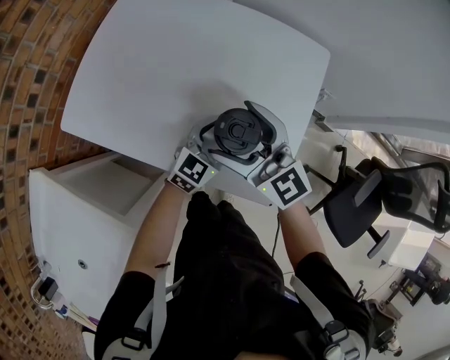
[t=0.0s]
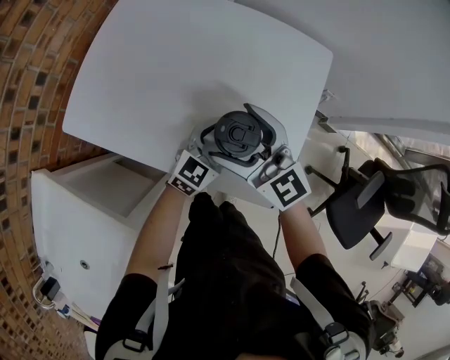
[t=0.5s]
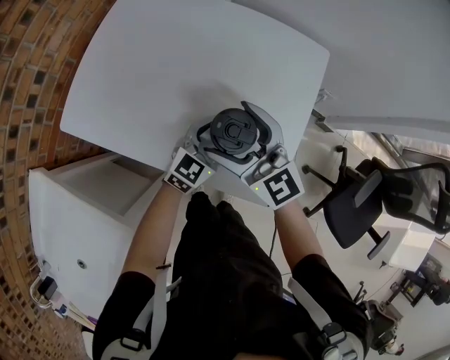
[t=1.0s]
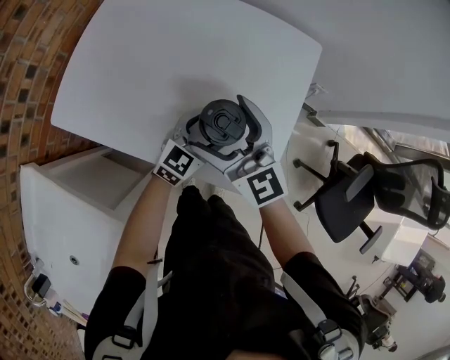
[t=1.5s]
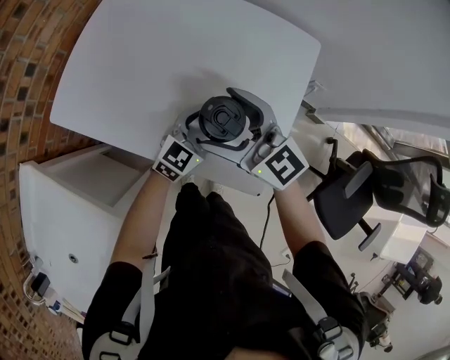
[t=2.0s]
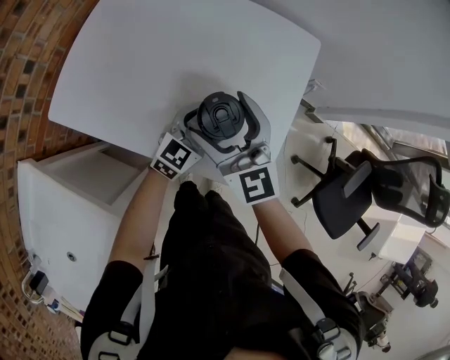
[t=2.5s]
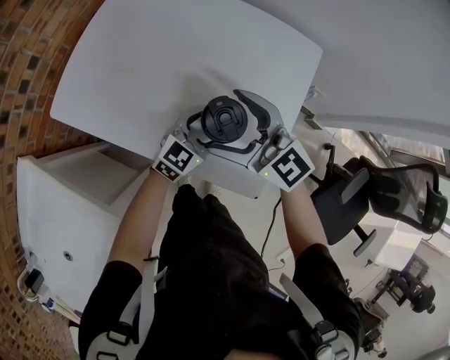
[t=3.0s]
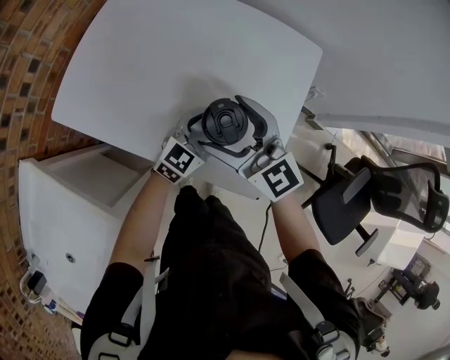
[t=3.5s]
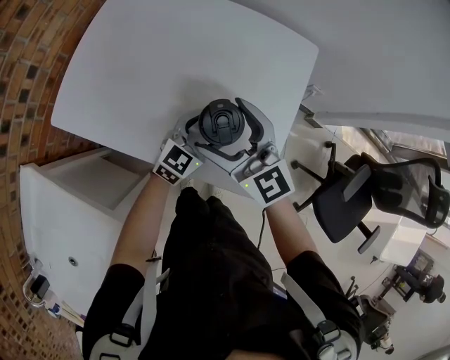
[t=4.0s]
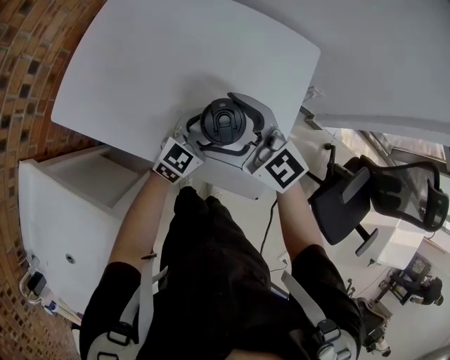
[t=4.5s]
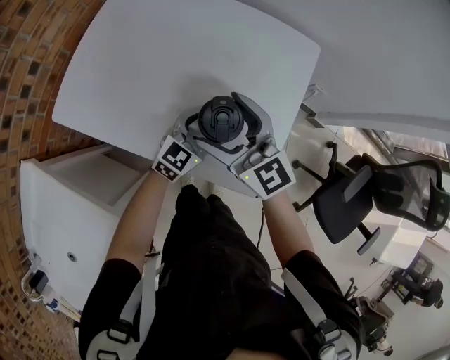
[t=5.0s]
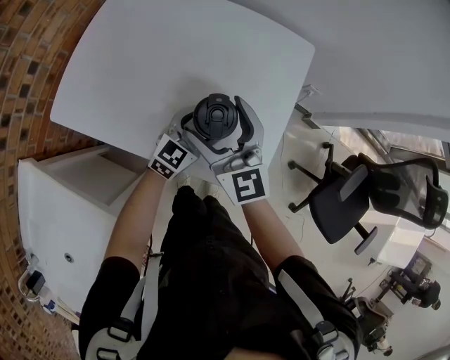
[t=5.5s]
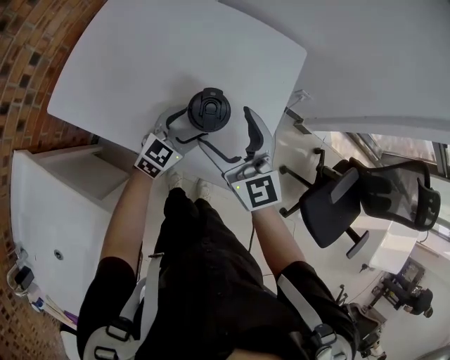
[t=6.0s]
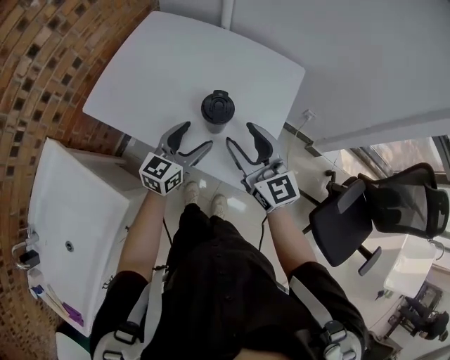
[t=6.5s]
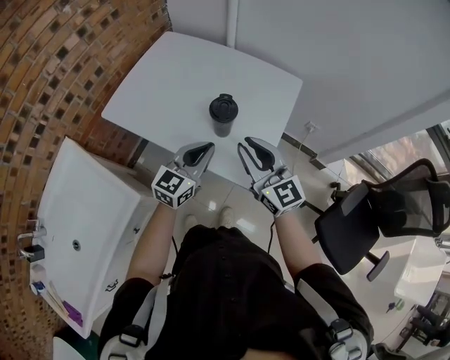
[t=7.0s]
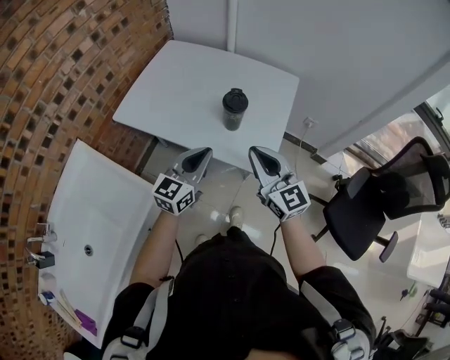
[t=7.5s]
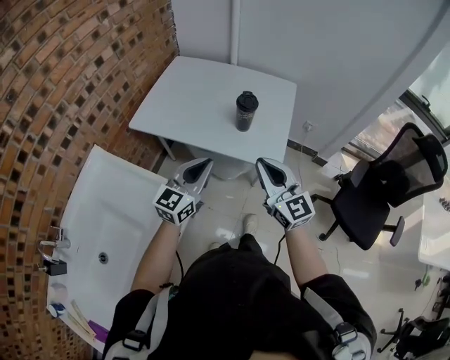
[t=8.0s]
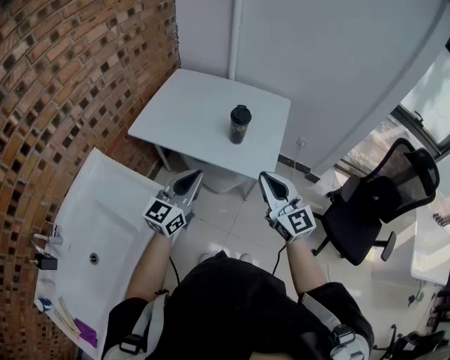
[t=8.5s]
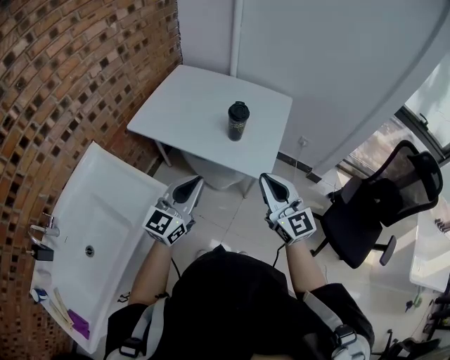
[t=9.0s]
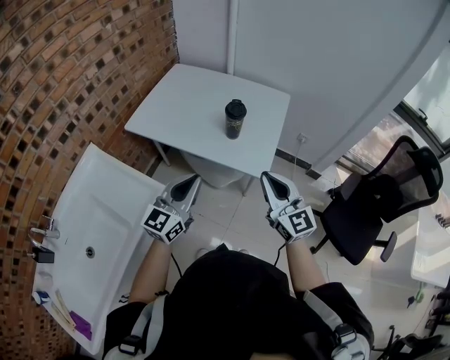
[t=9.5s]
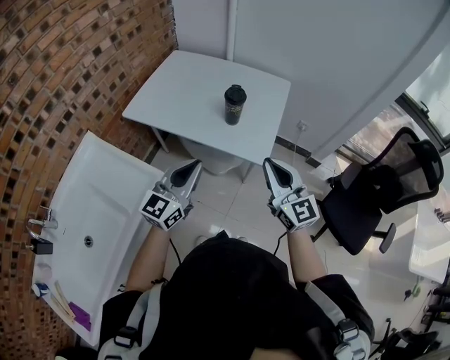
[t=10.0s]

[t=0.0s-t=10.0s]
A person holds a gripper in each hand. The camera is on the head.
t=0.0s to t=2.0s: The grippers move only a little.
t=4.0s to t=6.0s: There are only small adjustments of the grippers.
t=6.0s to t=8.0s: The right gripper moves backward and upward, approximately 30 cm, and closes. The left gripper travels backward, upward and to the left by about 40 cm, swivels about 30 degrees, and closes up.
t=8.0s to t=10.0s: The left gripper shifts by about 5 cm; the right gripper shifts roughly 10 cm to the right.

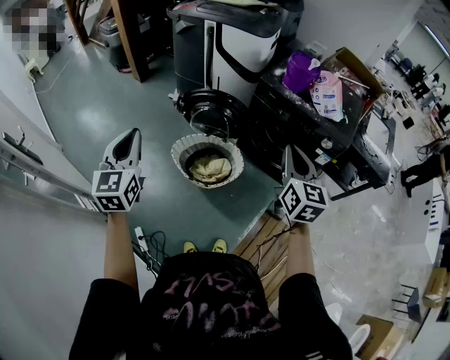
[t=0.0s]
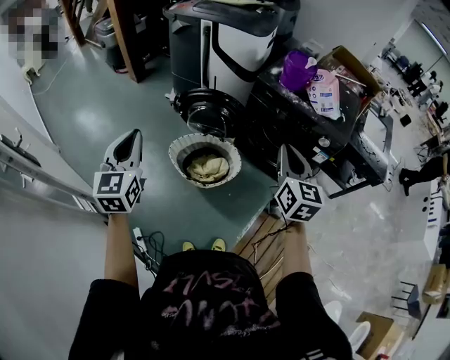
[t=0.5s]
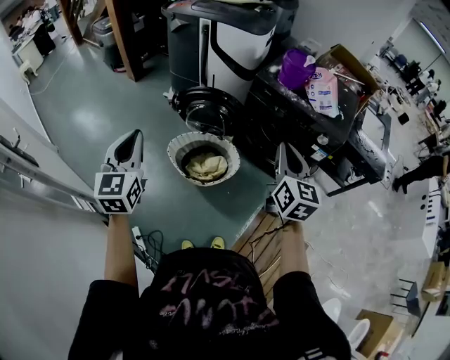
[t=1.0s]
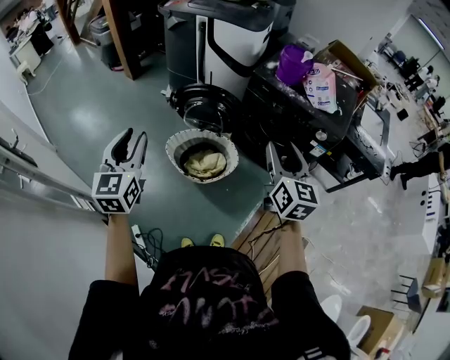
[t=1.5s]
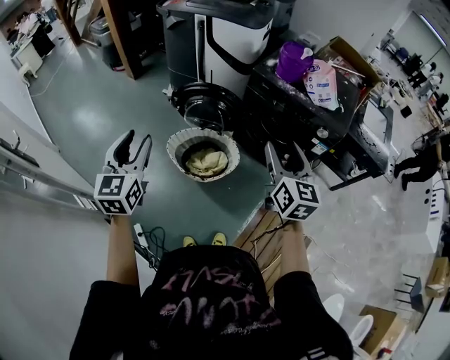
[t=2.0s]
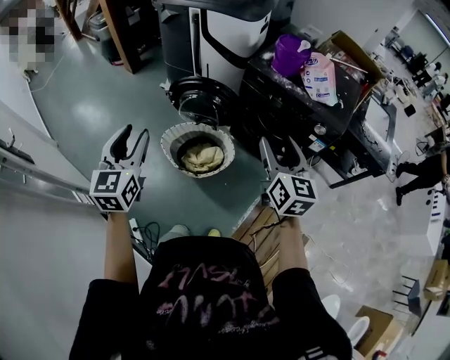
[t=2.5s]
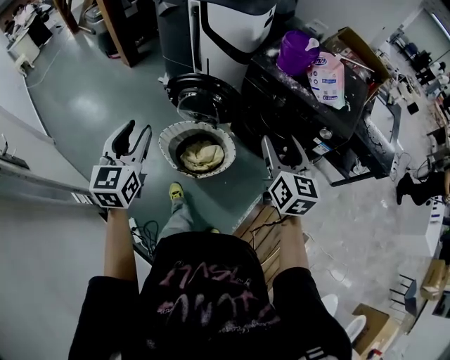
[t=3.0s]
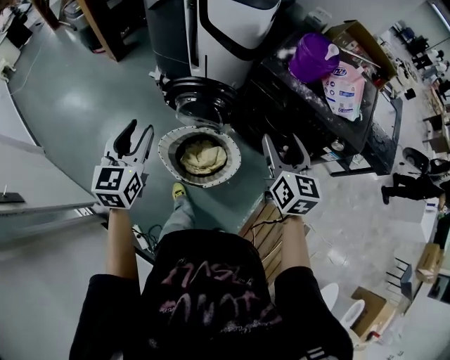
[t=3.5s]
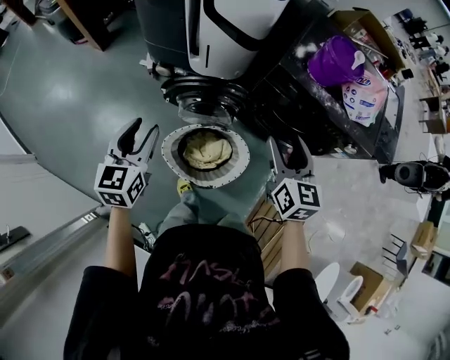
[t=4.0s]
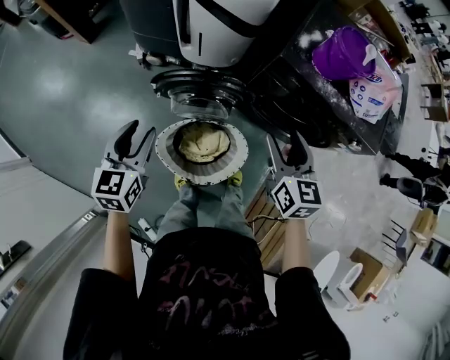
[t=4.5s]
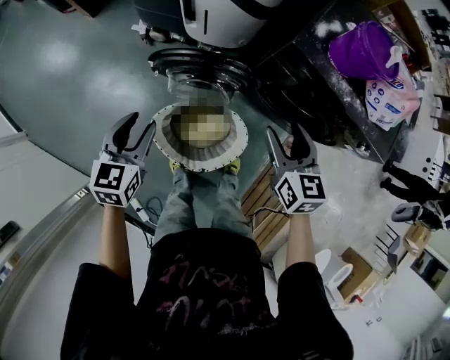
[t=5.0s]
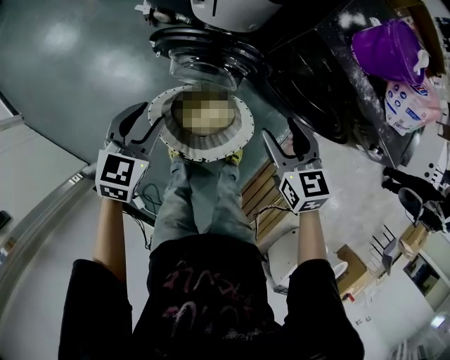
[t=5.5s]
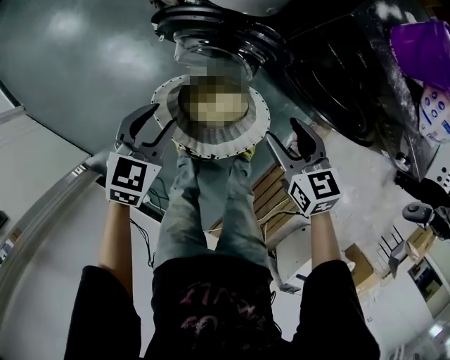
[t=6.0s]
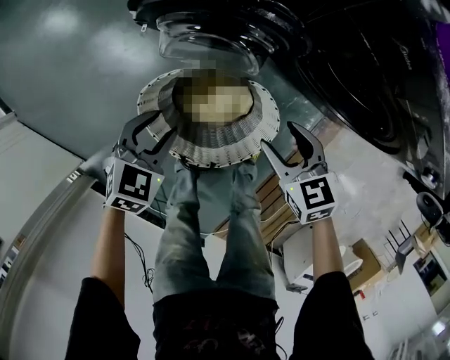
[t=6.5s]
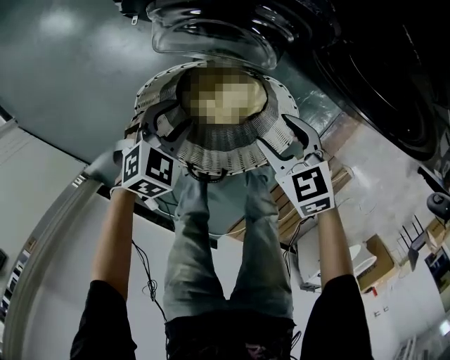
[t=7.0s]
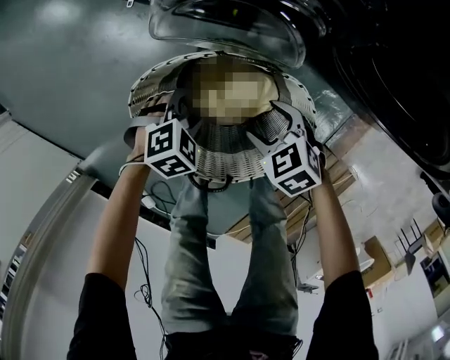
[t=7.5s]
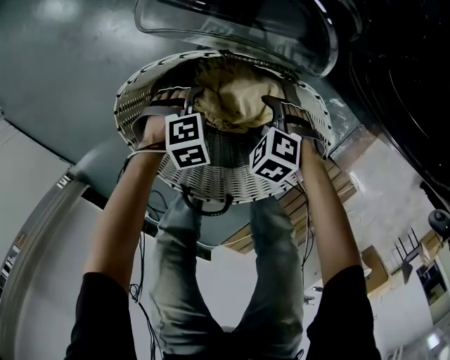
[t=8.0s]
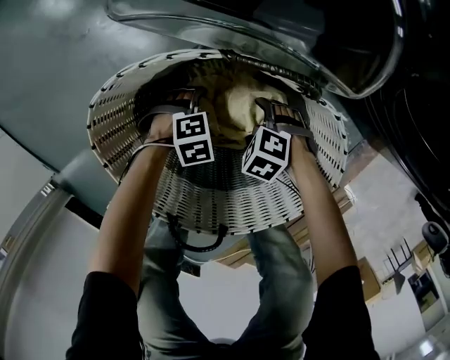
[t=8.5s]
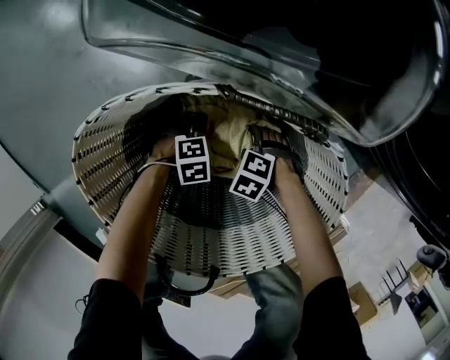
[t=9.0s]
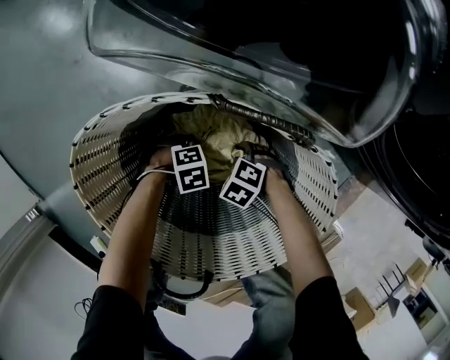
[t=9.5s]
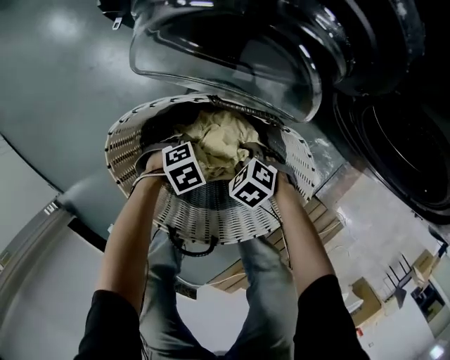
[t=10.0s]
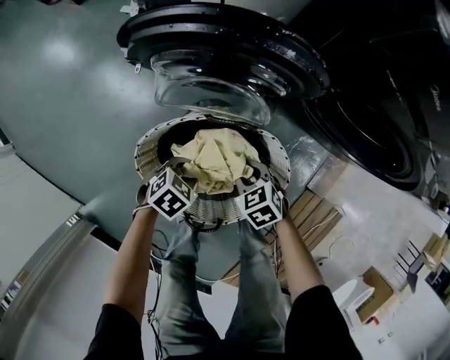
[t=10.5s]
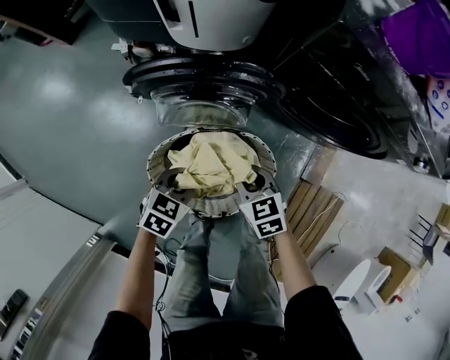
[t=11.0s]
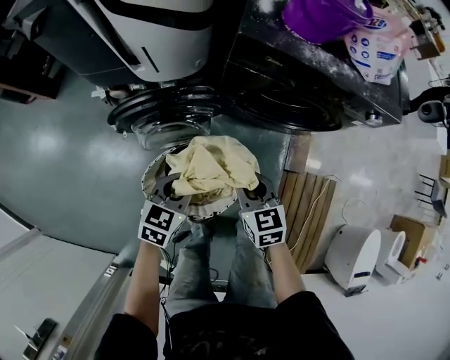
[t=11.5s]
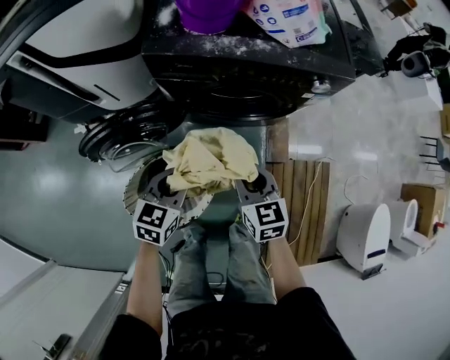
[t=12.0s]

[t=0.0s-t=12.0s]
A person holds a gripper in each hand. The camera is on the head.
t=0.0s to t=2.0s: The left gripper opens its fingers, while the right gripper opens its fingers.
t=2.0s to t=4.0s: The right gripper travels forward by approximately 25 cm; the left gripper goes about 35 cm forward and downward, and rotates roughly 20 degrees.
t=4.0s to t=6.0s: The grippers both shift downward by about 25 cm. The left gripper swivels approximately 20 degrees. Meanwhile the right gripper turns by roughly 40 degrees.
t=6.0s to t=8.0s: Both grippers move downward, roughly 50 cm. The right gripper tilts its fingers roughly 40 degrees downward; the left gripper tips its fingers downward by some 40 degrees.
t=8.0s to t=10.0s: The right gripper moves some 20 cm downward and comes back, and closes its fingers, while the left gripper travels downward and back again, about 20 cm each way, and closes its fingers.
t=10.0s to t=12.0s: The two grippers go roughly 50 cm upward. The left gripper points its fingers some 40 degrees further upward; the right gripper angles its fingers upward, by about 50 degrees.

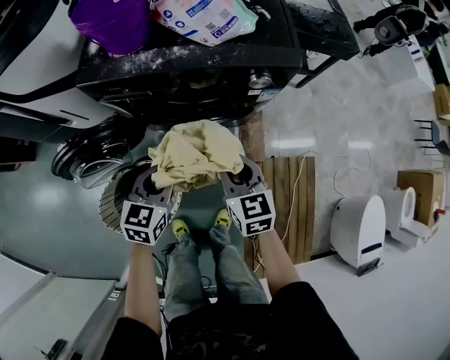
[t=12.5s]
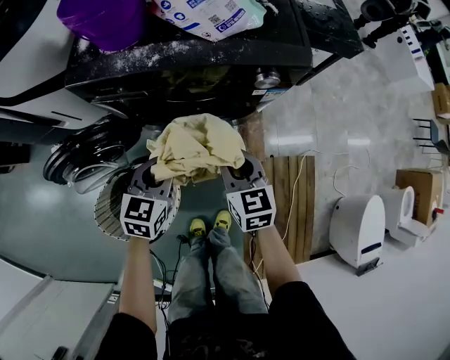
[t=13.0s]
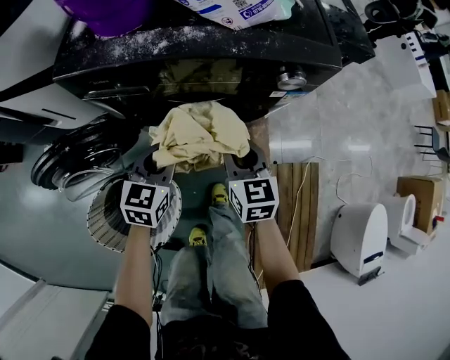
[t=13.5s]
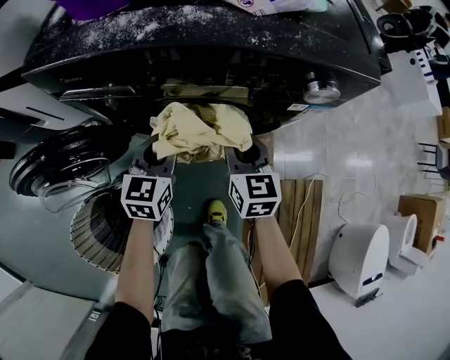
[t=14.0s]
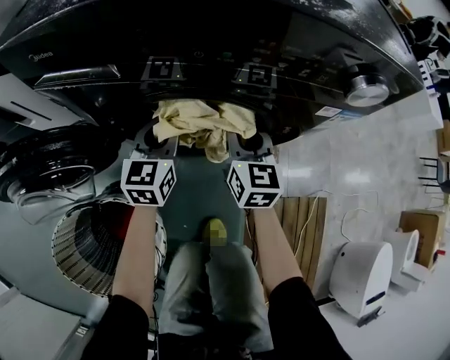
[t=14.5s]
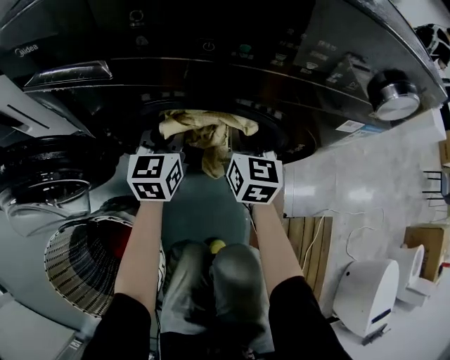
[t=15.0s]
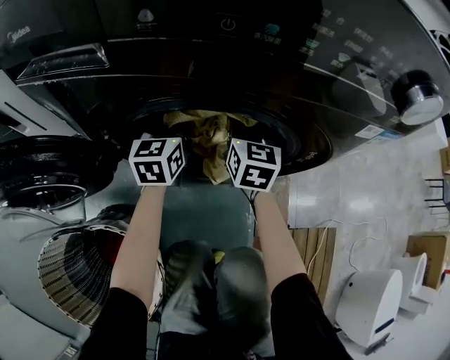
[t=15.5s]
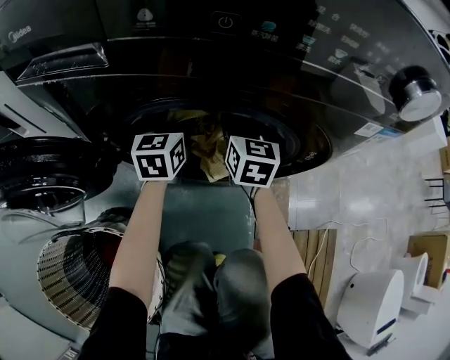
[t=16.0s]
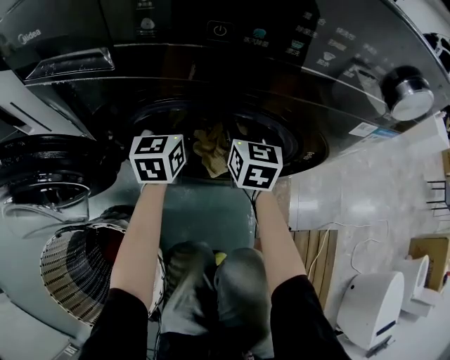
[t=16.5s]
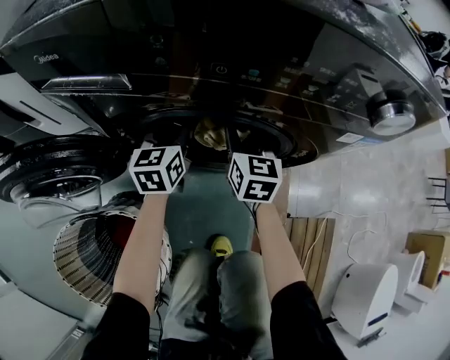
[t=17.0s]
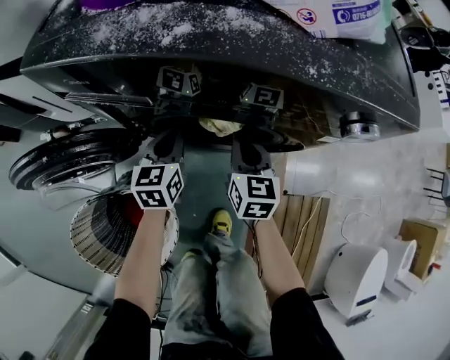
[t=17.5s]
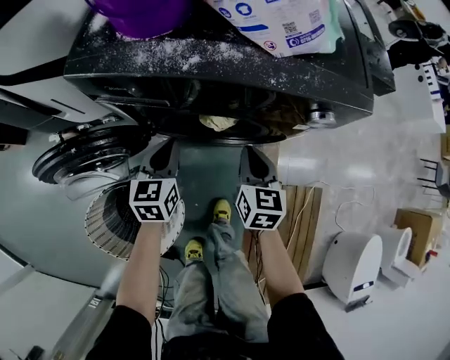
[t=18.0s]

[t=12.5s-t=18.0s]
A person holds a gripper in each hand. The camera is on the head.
t=12.5s to t=14.5s: The two grippers go approximately 35 cm downward and forward. The left gripper rotates roughly 20 degrees.
t=14.5s to t=16.0s: Both grippers move forward and downward, about 15 cm. The right gripper opens up.
t=16.0s to t=18.0s: The two grippers go some 25 cm backward and upward. The right gripper closes up. Meanwhile the left gripper closes up.
